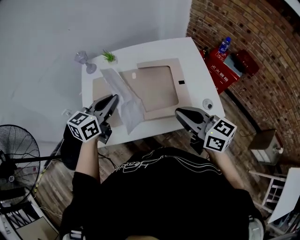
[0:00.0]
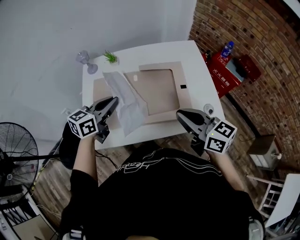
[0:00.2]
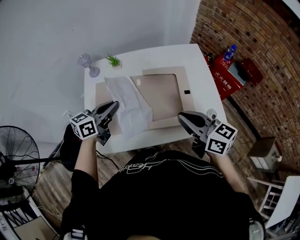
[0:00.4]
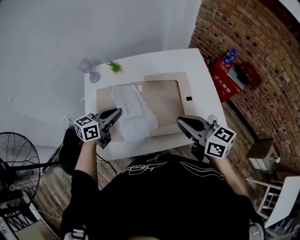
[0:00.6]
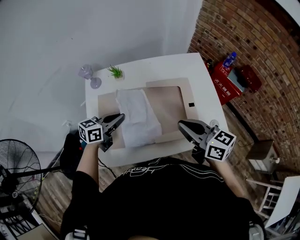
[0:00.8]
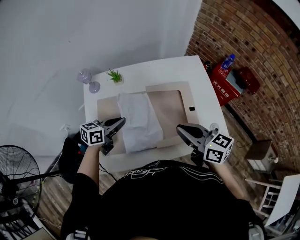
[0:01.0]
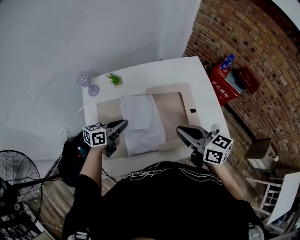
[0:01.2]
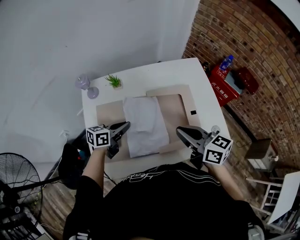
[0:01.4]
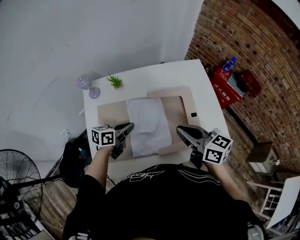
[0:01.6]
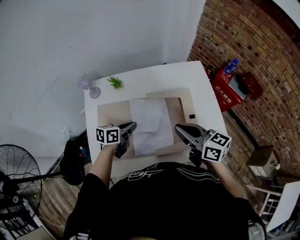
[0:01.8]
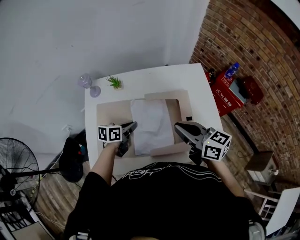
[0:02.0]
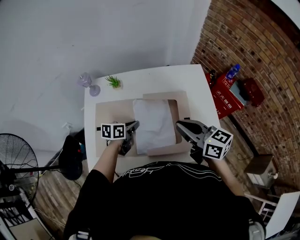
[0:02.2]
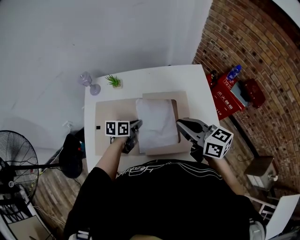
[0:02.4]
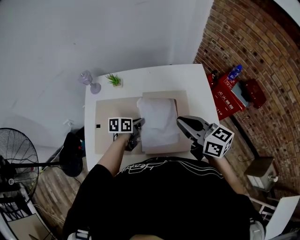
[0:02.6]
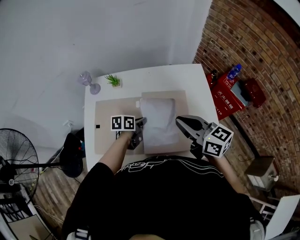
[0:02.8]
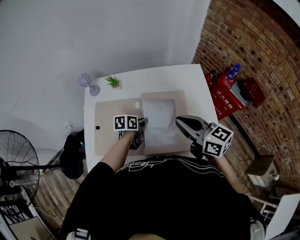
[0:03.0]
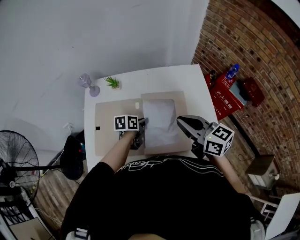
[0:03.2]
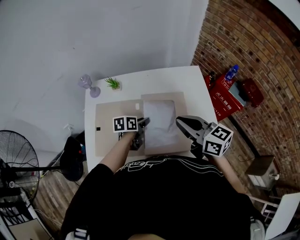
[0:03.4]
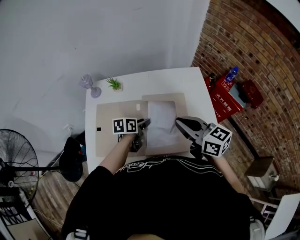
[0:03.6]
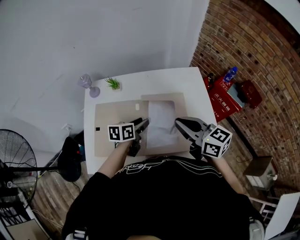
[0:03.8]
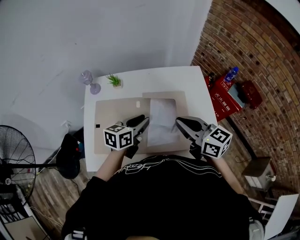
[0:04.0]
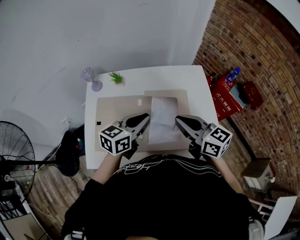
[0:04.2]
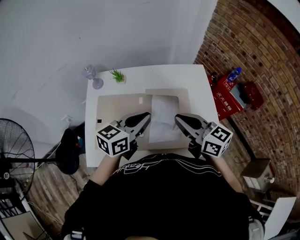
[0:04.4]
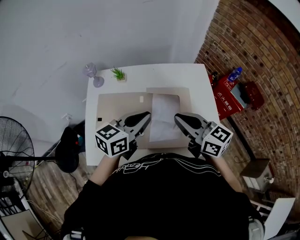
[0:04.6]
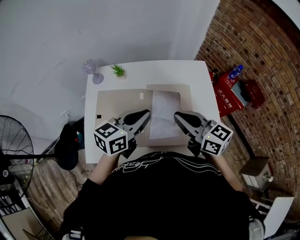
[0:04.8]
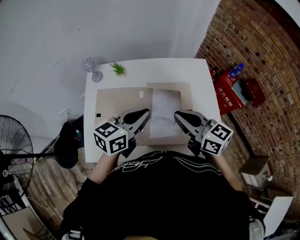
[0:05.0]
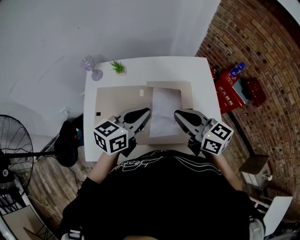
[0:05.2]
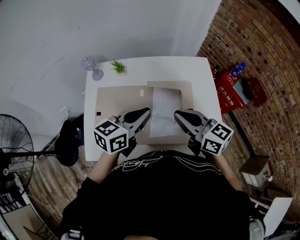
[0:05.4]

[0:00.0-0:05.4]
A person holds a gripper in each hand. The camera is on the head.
0:00.0 to 0:01.4: The right gripper travels forward and to the left by some 10 cm; the left gripper heads downward and forward, covering about 15 cm, and changes its angle by some 30 degrees.
0:01.4 to 0:02.8: The left gripper travels to the right and downward by approximately 15 cm, and swivels roughly 30 degrees; the right gripper moves to the right, roughly 5 cm.
0:02.8 to 0:04.0: The left gripper is displaced upward by approximately 15 cm, turns by approximately 30 degrees, and opens its fingers.
0:04.0 to 0:05.4: The left gripper moves upward, about 10 cm, and closes.

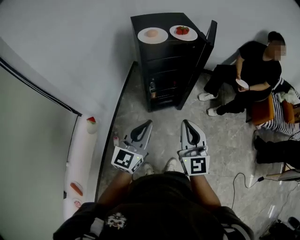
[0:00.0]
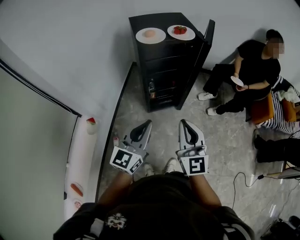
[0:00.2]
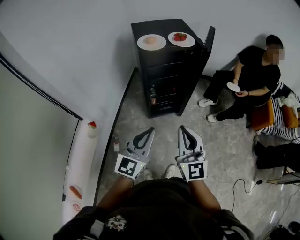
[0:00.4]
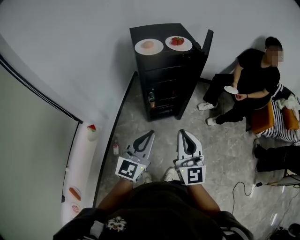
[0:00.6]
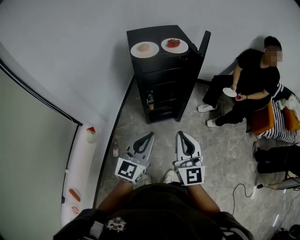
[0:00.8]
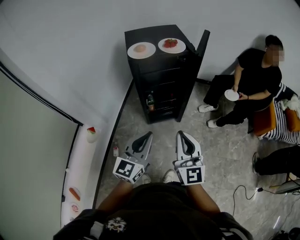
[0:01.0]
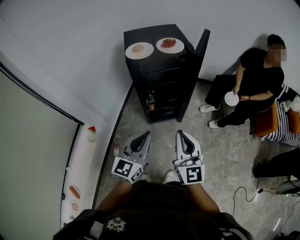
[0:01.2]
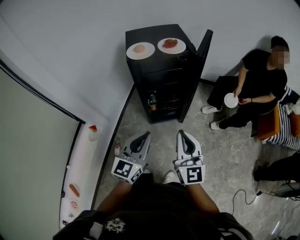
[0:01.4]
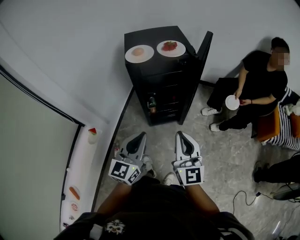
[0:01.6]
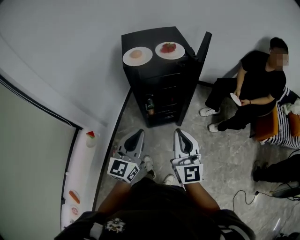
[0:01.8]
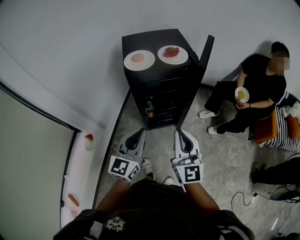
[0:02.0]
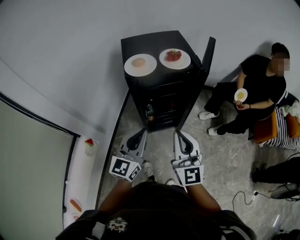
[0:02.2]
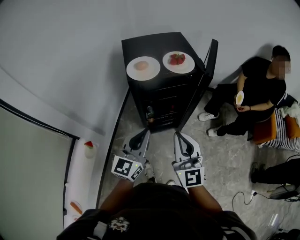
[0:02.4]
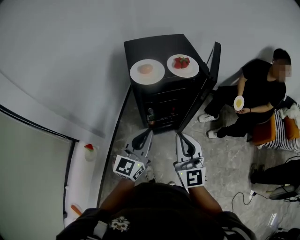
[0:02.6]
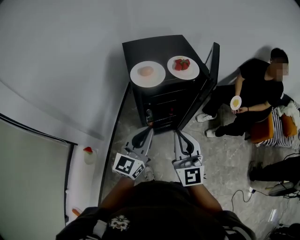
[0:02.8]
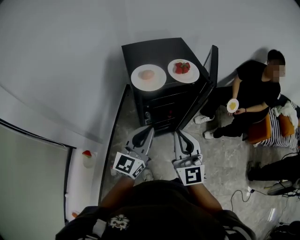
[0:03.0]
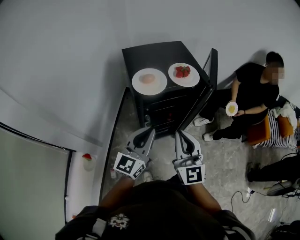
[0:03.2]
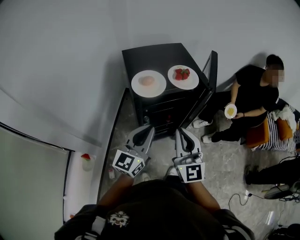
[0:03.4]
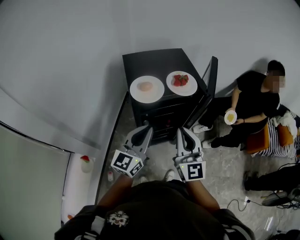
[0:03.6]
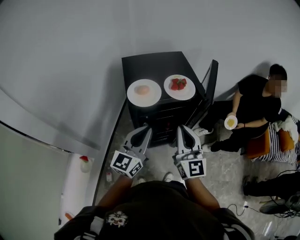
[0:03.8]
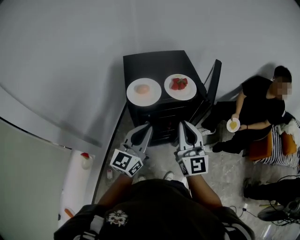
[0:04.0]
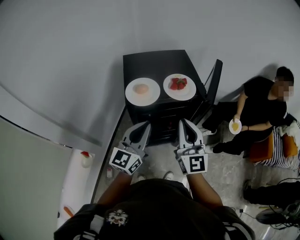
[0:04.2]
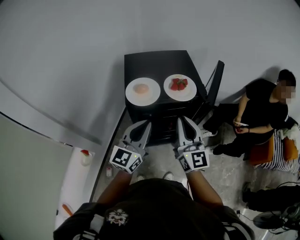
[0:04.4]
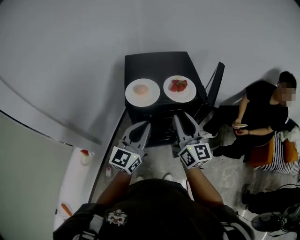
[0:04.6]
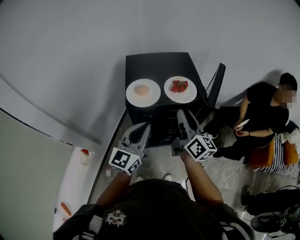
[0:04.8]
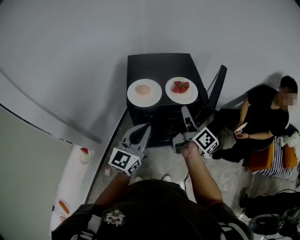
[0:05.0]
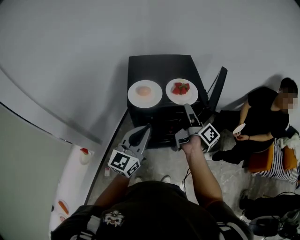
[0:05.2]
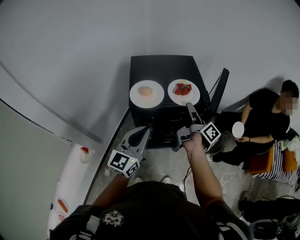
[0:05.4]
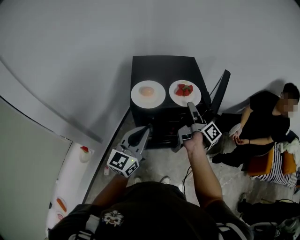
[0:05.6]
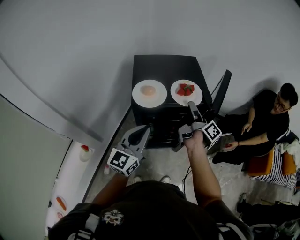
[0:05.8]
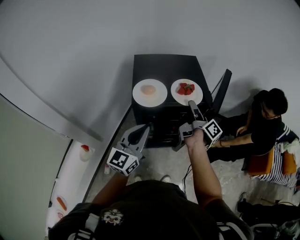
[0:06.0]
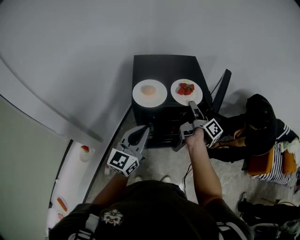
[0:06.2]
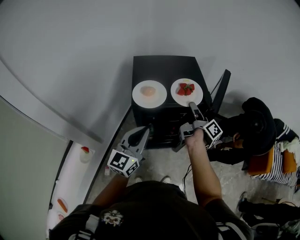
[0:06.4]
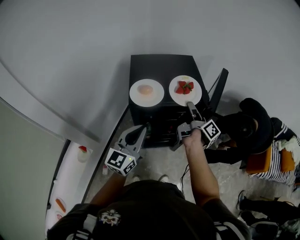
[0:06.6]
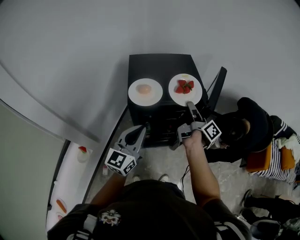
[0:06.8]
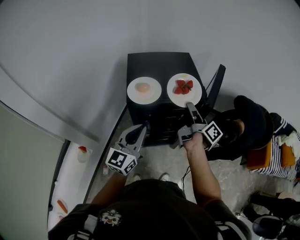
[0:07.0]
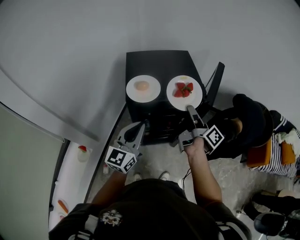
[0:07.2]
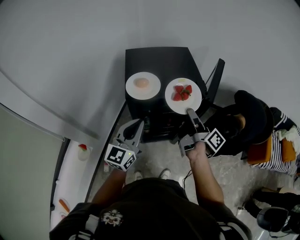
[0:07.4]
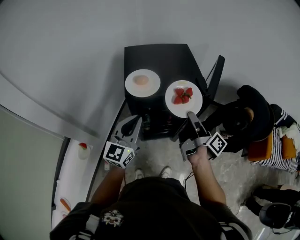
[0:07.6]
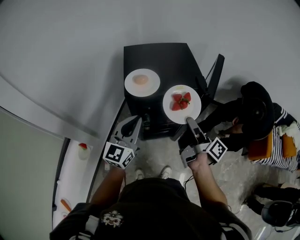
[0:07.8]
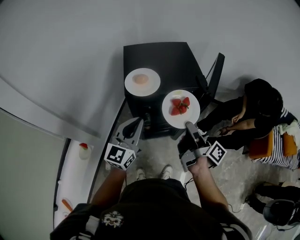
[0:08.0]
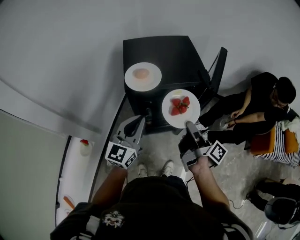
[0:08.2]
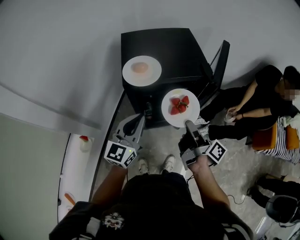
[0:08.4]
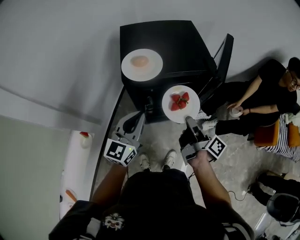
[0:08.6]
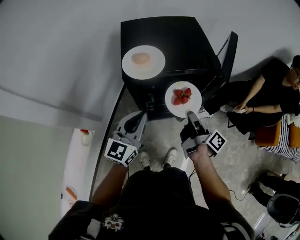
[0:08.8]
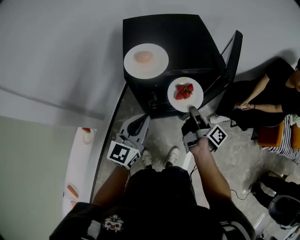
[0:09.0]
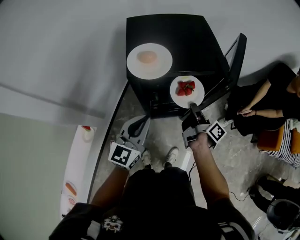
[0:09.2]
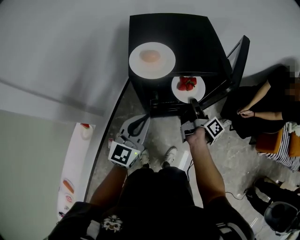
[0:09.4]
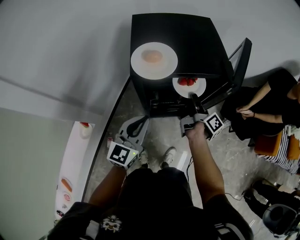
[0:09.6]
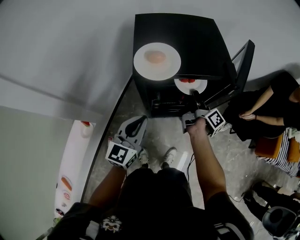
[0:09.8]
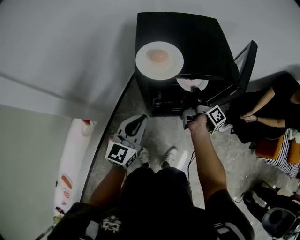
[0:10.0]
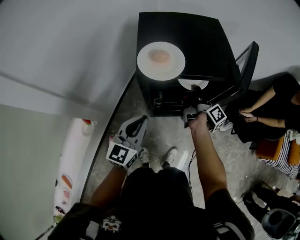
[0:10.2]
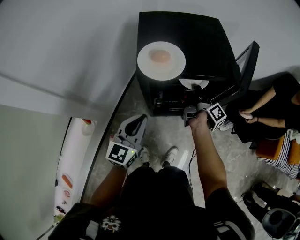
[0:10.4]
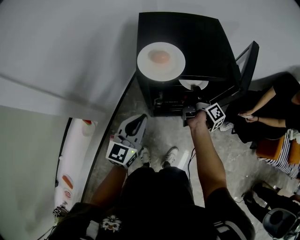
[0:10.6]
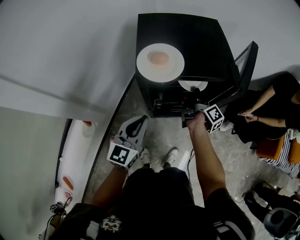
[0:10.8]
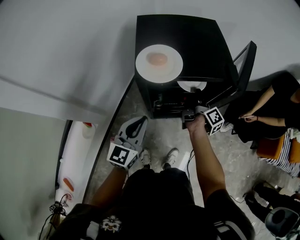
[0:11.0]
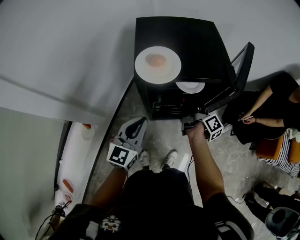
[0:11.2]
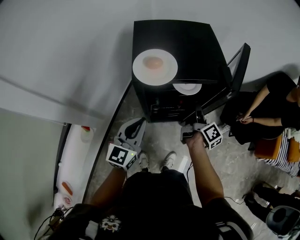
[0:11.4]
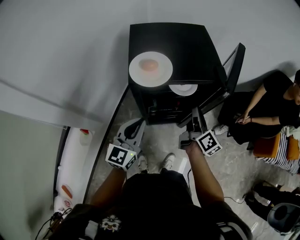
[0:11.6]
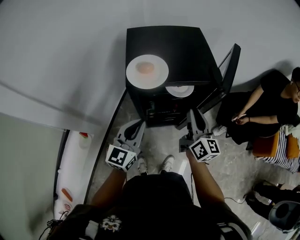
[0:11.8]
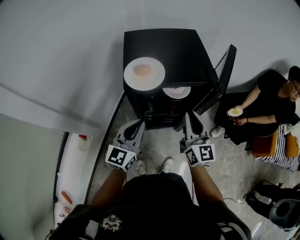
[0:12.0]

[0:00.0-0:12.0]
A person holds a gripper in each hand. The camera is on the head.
0:00.0 to 0:01.6: The grippers both shift to the right by roughly 5 cm.
0:01.6 to 0:03.0: The grippers both shift forward and to the left by approximately 20 cm.
0:03.0 to 0:04.4: The right gripper shifts about 15 cm forward and to the right; the left gripper shifts about 10 cm forward.
0:04.4 to 0:06.0: The right gripper goes approximately 15 cm forward and downward, rotates around the line of its fingers by roughly 80 degrees, clockwise from behind, and opens its fingers.
0:06.0 to 0:07.6: The right gripper heads backward, covering approximately 10 cm.
0:07.6 to 0:09.0: The left gripper moves downward, approximately 10 cm. The right gripper goes approximately 15 cm downward.
0:09.0 to 0:10.4: The left gripper changes place by some 5 cm; the right gripper travels forward by approximately 10 cm.
0:10.4 to 0:12.0: The right gripper travels upward and backward by about 20 cm, and rotates around the line of its fingers by about 80 degrees, counterclockwise from behind. Meanwhile the left gripper shifts by some 5 cm.

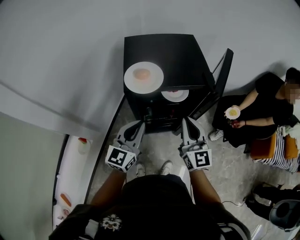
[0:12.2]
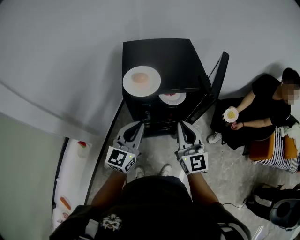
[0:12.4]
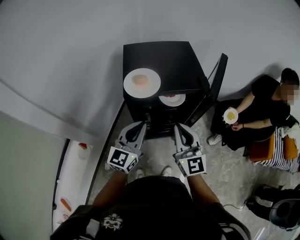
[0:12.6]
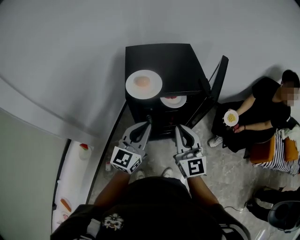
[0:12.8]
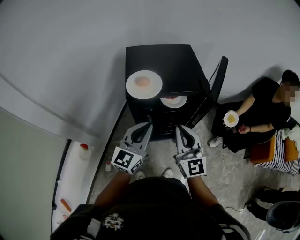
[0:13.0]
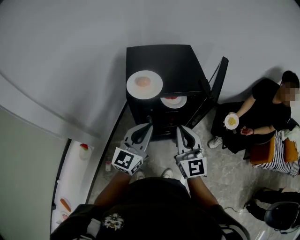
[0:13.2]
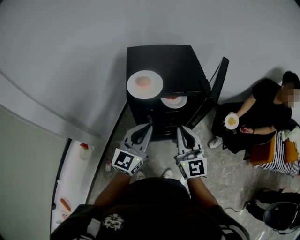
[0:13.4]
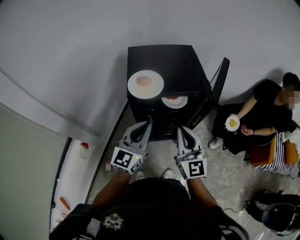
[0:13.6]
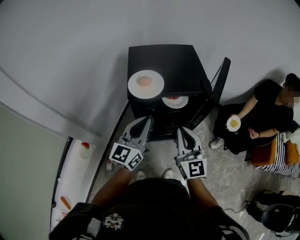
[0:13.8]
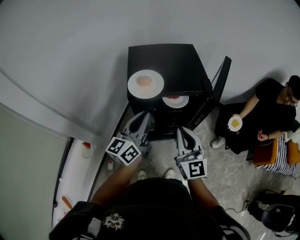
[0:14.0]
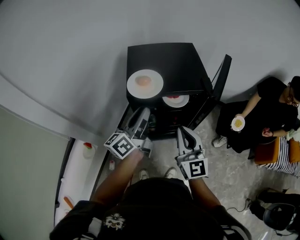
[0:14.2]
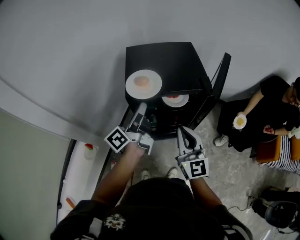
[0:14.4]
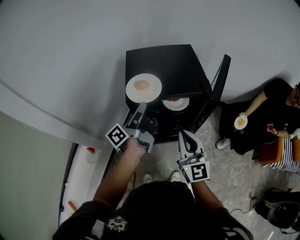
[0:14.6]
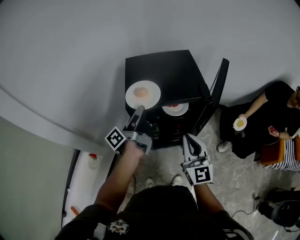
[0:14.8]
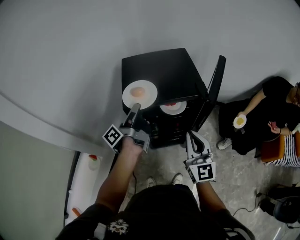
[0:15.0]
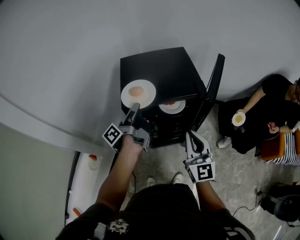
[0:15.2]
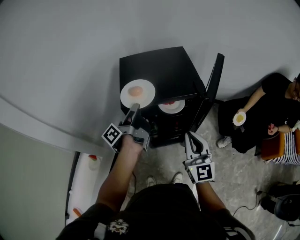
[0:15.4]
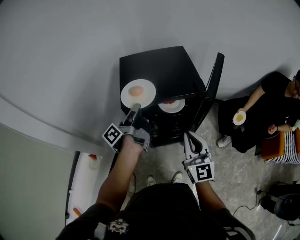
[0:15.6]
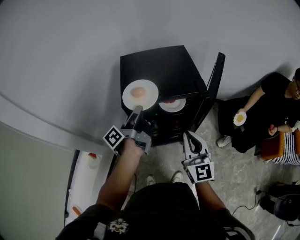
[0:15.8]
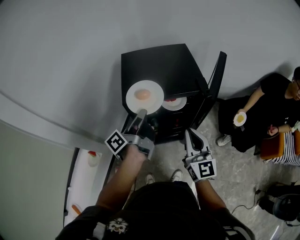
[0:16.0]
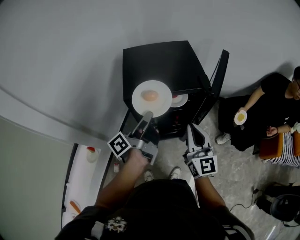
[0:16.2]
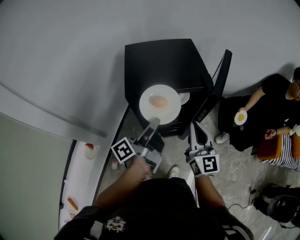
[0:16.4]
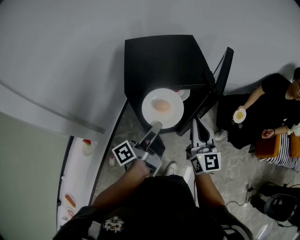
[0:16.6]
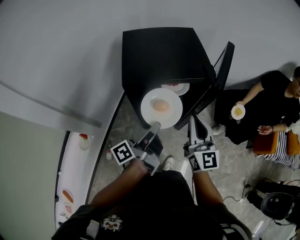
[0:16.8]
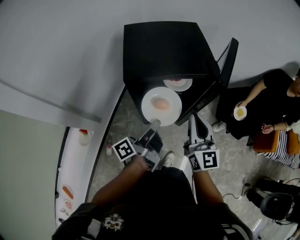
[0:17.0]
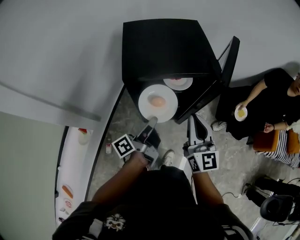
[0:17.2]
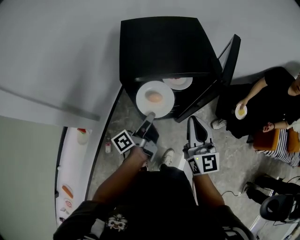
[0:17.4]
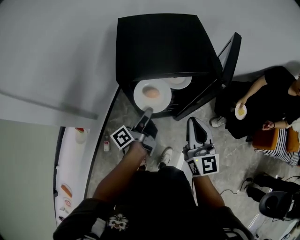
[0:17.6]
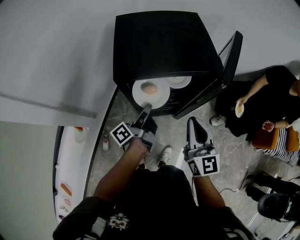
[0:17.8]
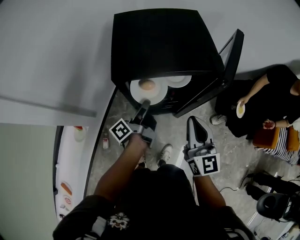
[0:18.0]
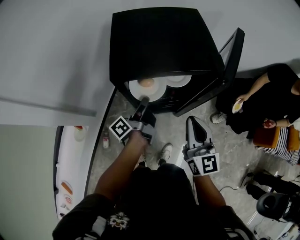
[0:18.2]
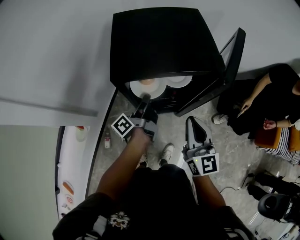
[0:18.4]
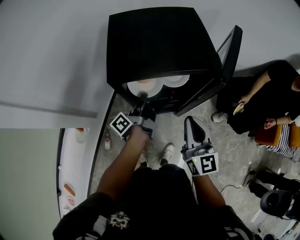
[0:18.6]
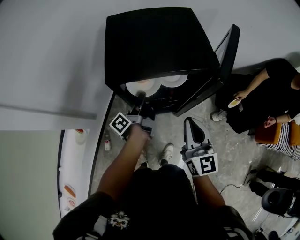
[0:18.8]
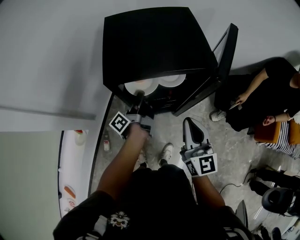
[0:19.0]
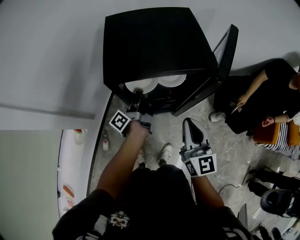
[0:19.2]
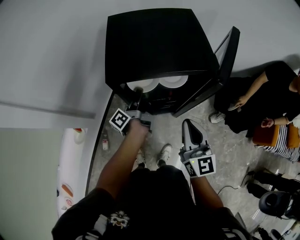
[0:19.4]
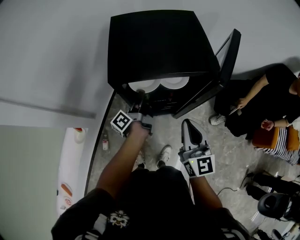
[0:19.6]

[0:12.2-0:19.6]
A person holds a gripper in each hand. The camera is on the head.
0:12.2 to 0:13.6: The left gripper ends up roughly 5 cm from where it was. The right gripper ends up some 5 cm from where it was.
0:13.6 to 0:15.2: The right gripper moves some 5 cm. Meanwhile the left gripper moves forward, about 10 cm, rolls counterclockwise, seen from behind, by approximately 90 degrees, and opens up.
0:15.2 to 0:16.6: The left gripper shifts approximately 15 cm backward and to the right.
0:16.6 to 0:18.2: The right gripper heads downward, covering roughly 5 cm. The left gripper moves downward and forward, roughly 15 cm.
0:18.2 to 0:19.6: The grippers stay close to where they were, moving slightly.
